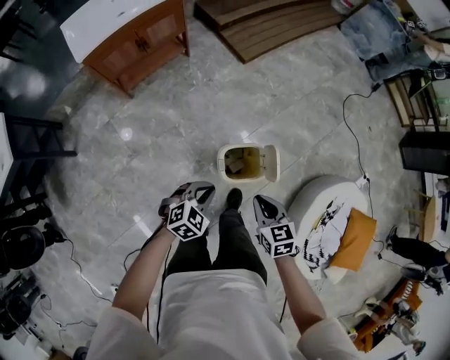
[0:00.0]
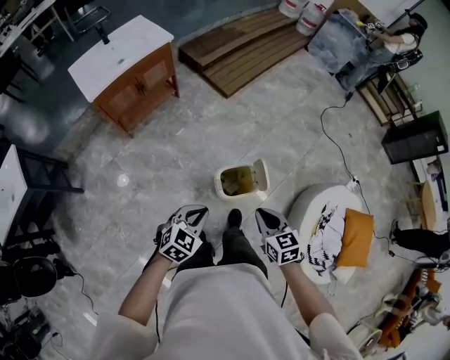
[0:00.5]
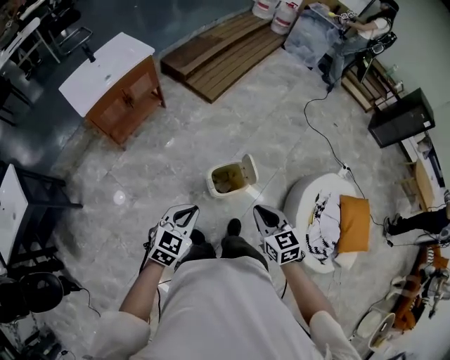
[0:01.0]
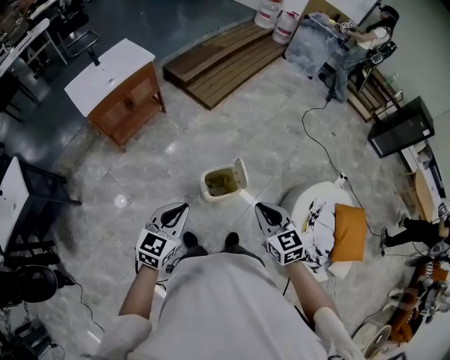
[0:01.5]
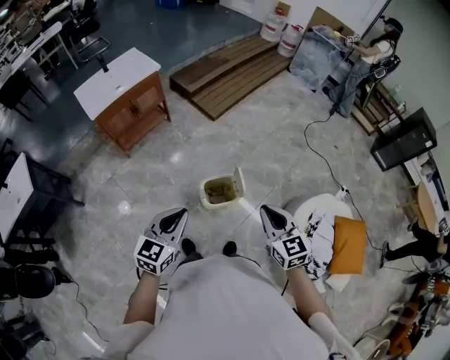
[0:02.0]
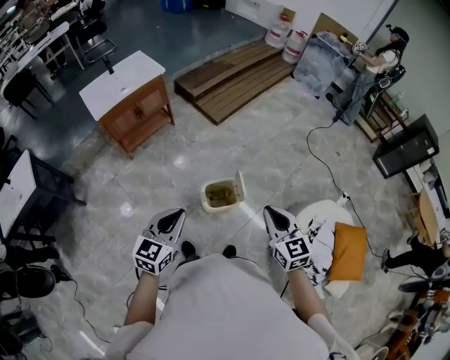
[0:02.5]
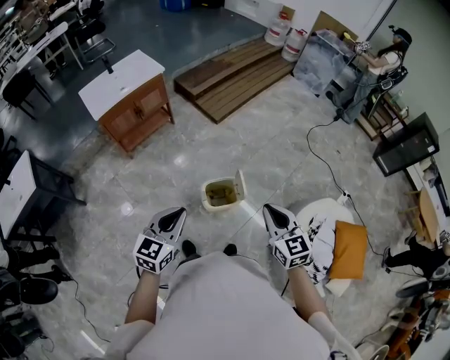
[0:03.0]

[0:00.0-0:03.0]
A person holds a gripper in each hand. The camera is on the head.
0:00.0 to 0:01.5: Both grippers travel together upward, approximately 25 cm. The left gripper changes its angle by some 30 degrees.
0:01.5 to 0:03.0: The right gripper moves some 5 cm.

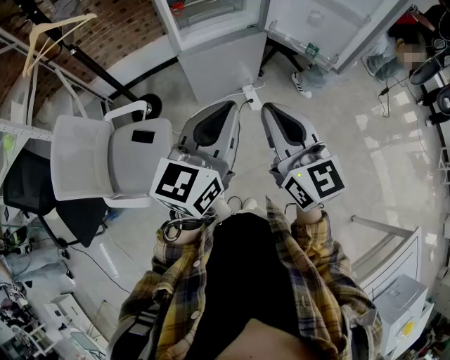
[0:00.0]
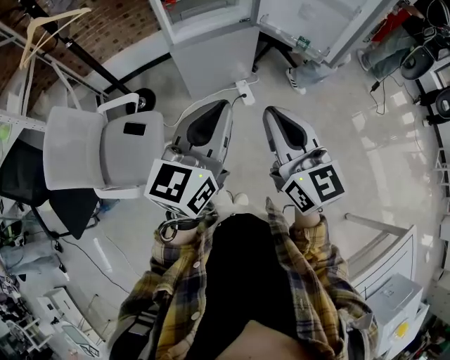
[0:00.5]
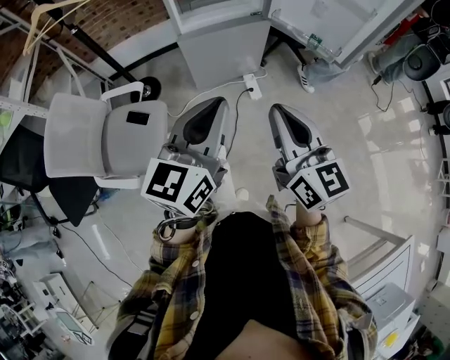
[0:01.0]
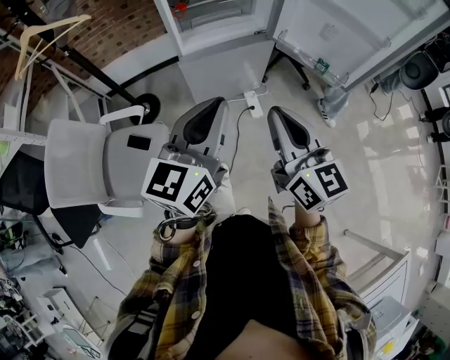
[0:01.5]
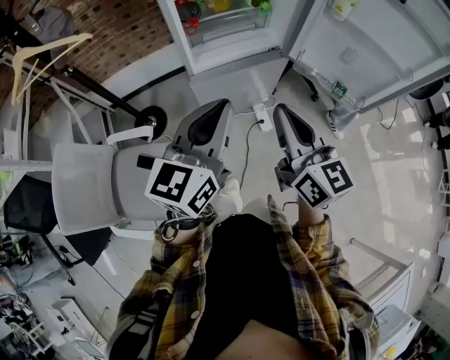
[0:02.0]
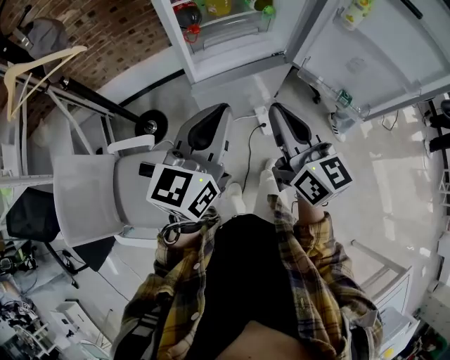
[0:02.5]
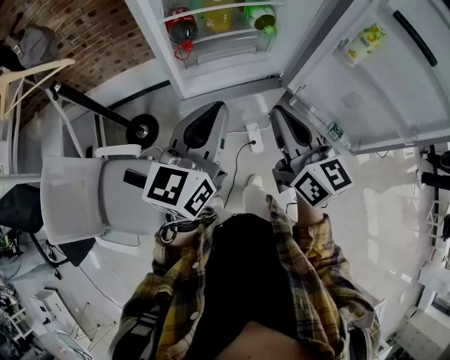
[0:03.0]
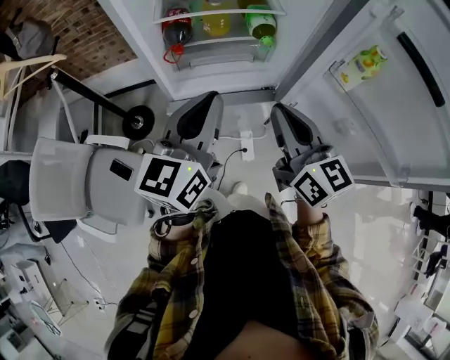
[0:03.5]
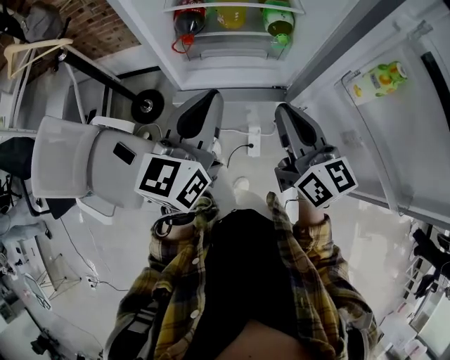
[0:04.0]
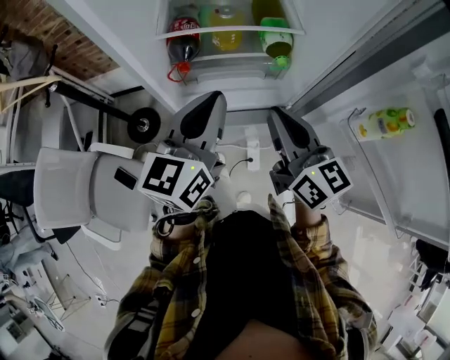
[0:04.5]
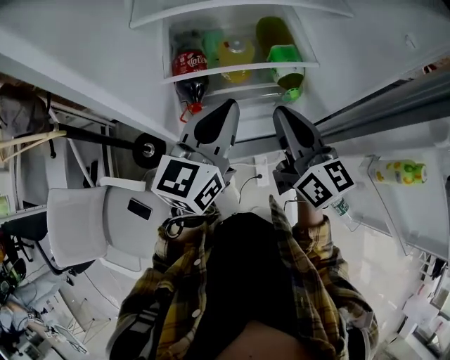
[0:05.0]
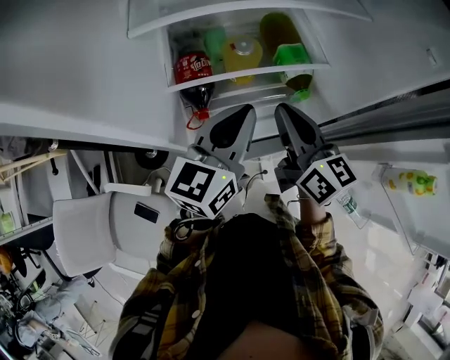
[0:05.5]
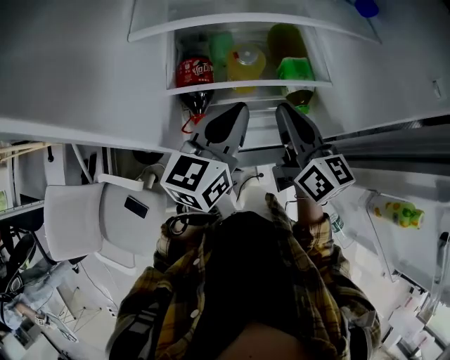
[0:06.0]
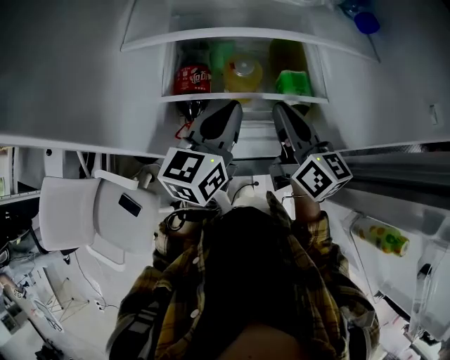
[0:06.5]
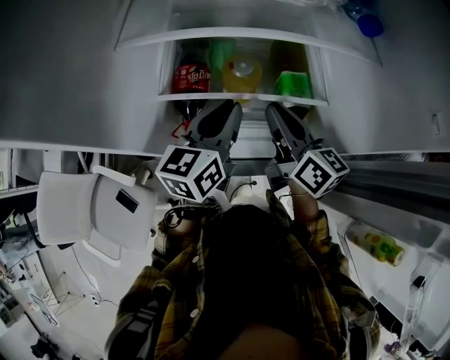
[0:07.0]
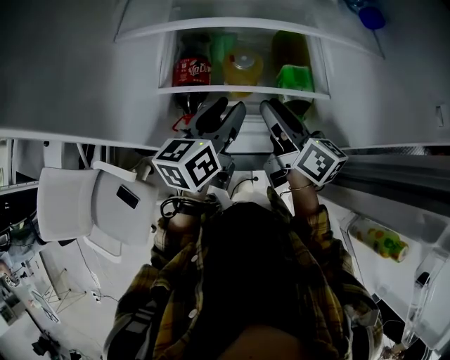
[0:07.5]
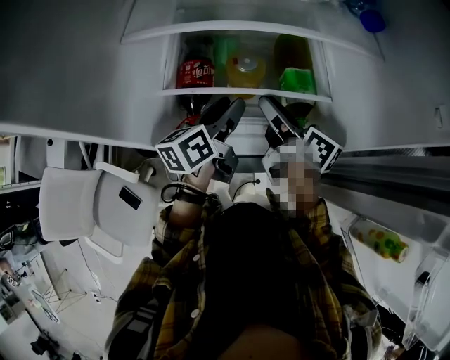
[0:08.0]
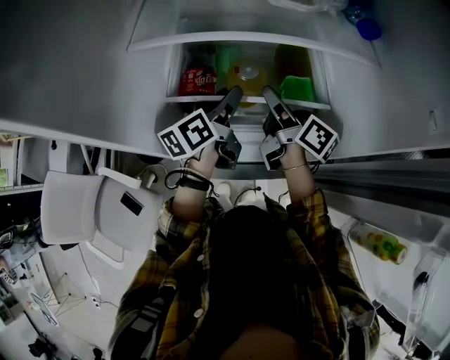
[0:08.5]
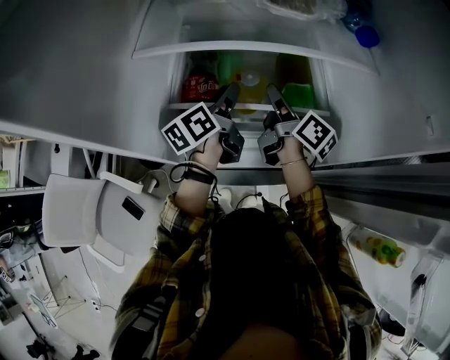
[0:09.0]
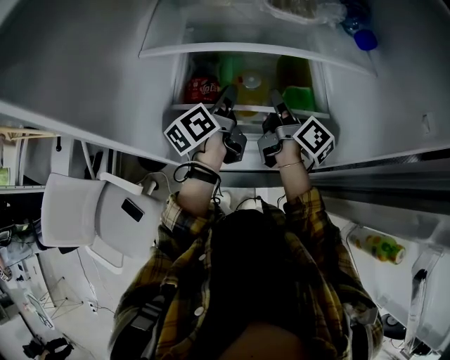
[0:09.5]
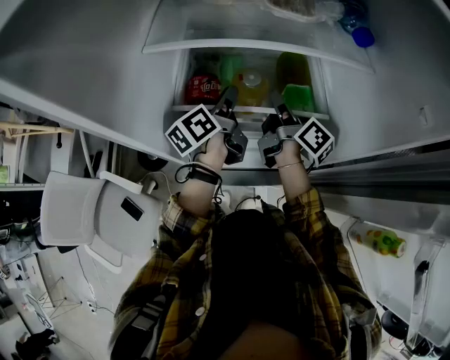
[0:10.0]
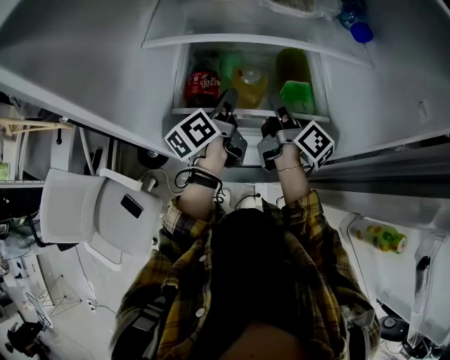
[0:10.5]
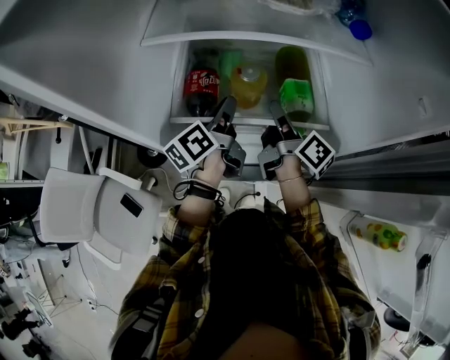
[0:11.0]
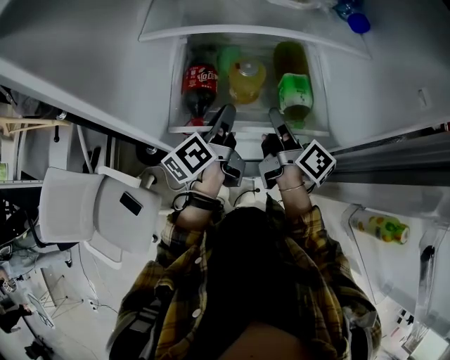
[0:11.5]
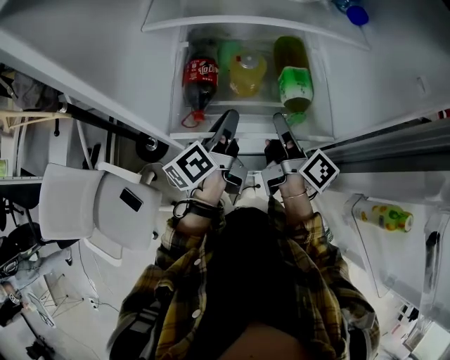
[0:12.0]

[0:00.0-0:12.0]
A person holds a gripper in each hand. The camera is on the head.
0:00.0 to 0:02.0: The two grippers go about 20 cm forward.
0:02.0 to 0:04.0: Both grippers move forward and to the right, approximately 25 cm. The right gripper swivels about 20 degrees, while the left gripper turns by some 20 degrees.
0:04.0 to 0:06.0: Both grippers travel together forward, approximately 25 cm.
0:06.0 to 0:08.0: The right gripper goes some 10 cm forward and downward, swivels some 30 degrees, and opens up. Meanwhile the left gripper is displaced downward and forward by some 10 cm, swivels roughly 30 degrees, and opens its fingers.
0:08.0 to 0:10.0: Both grippers move forward, roughly 5 cm. The right gripper closes. The left gripper closes up.
0:10.0 to 0:12.0: The grippers both shift backward by roughly 10 cm.

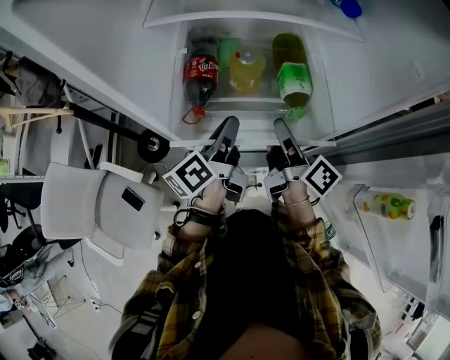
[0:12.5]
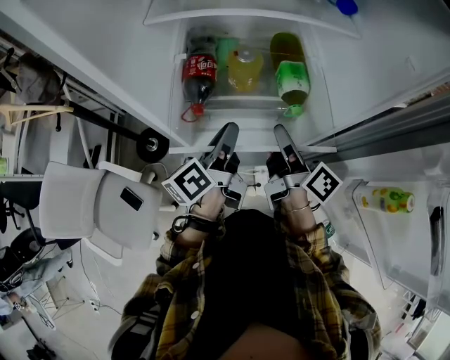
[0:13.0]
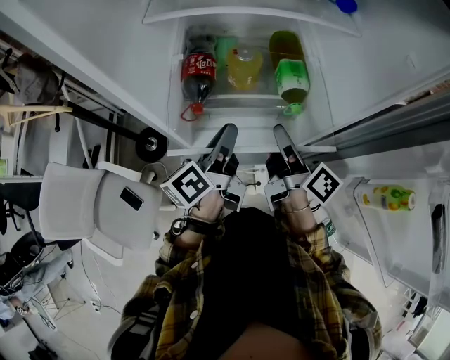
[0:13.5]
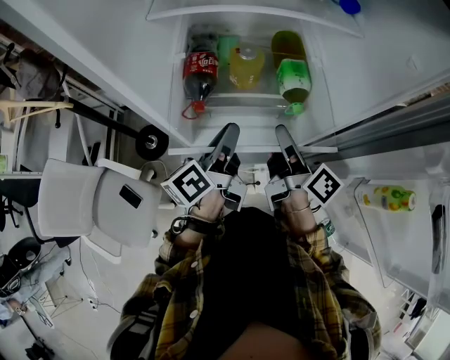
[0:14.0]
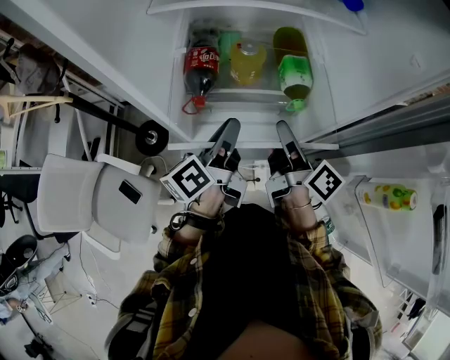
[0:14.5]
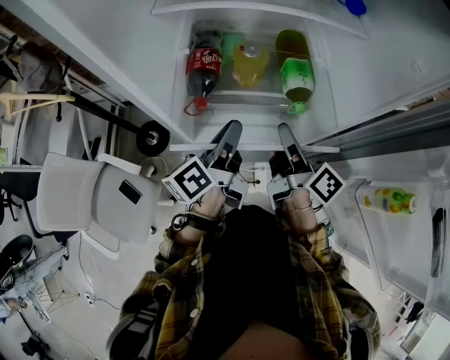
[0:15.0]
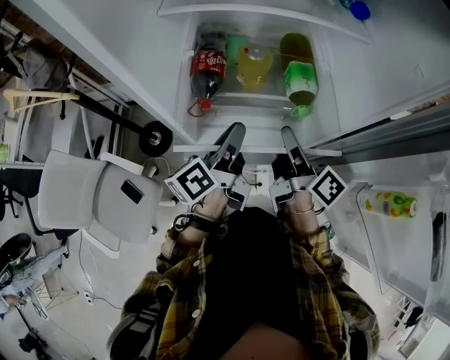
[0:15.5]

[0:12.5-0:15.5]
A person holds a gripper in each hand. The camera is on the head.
0:12.5 to 0:14.0: The grippers make only small movements.
0:14.0 to 0:15.5: Both grippers stay put.

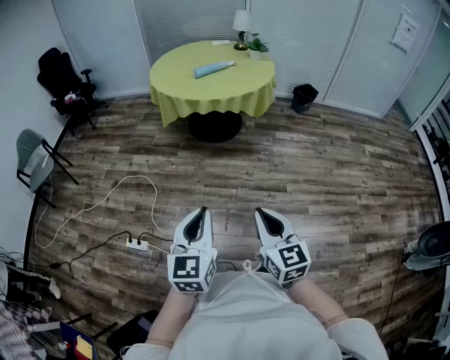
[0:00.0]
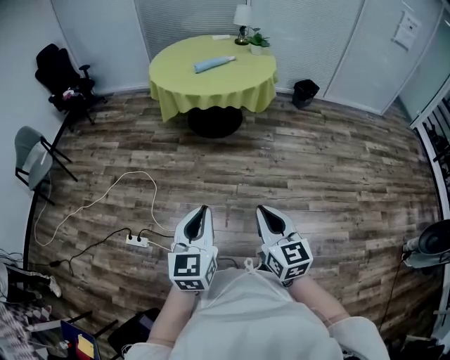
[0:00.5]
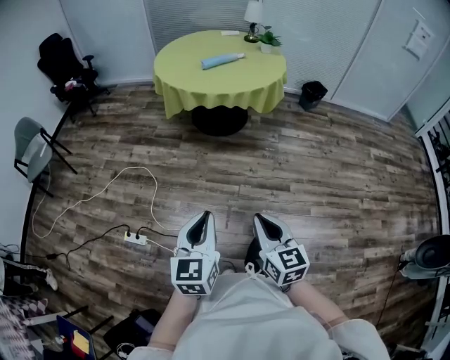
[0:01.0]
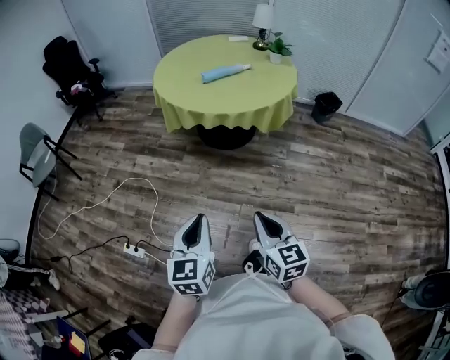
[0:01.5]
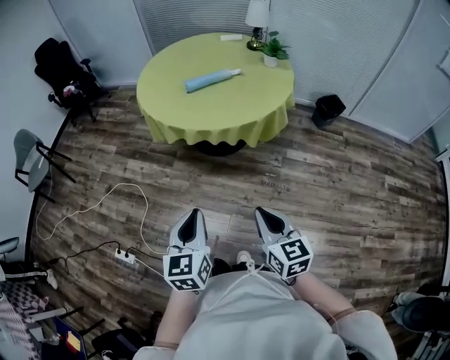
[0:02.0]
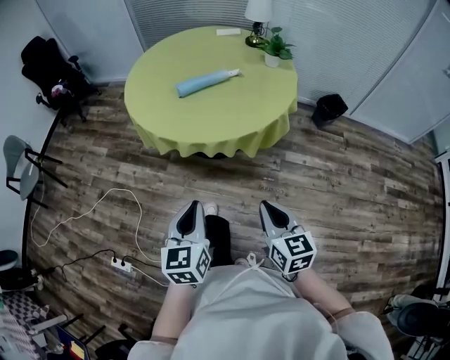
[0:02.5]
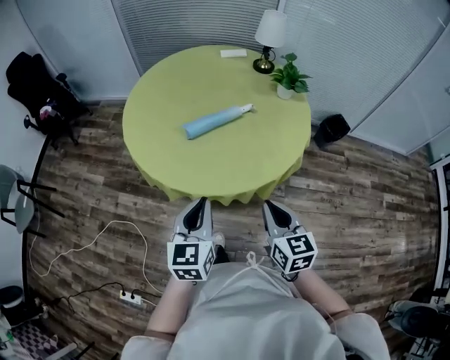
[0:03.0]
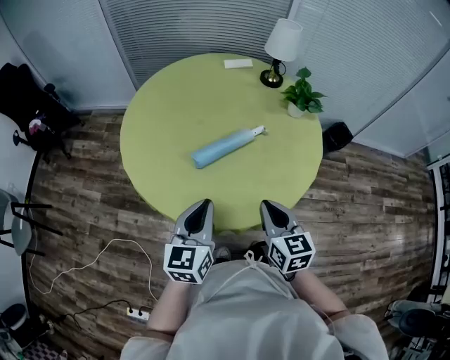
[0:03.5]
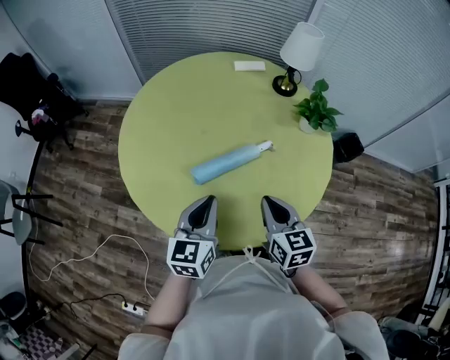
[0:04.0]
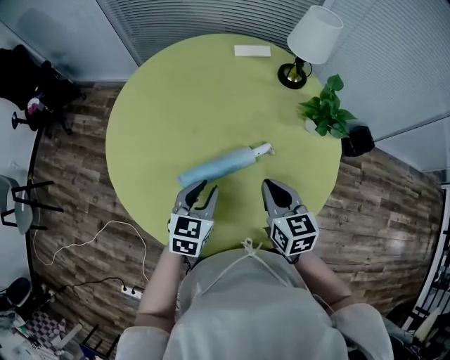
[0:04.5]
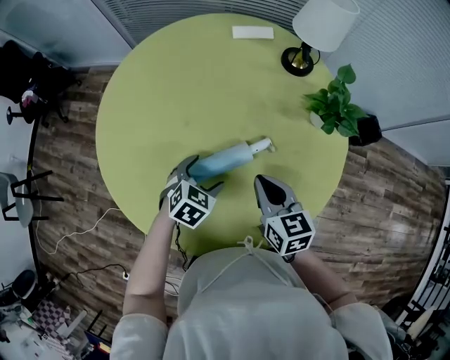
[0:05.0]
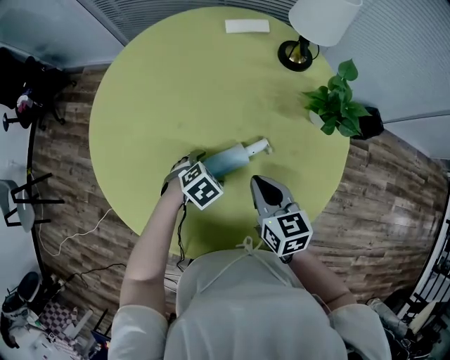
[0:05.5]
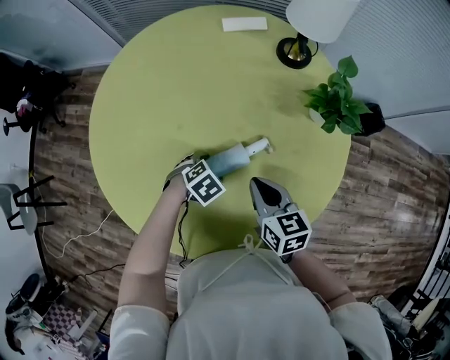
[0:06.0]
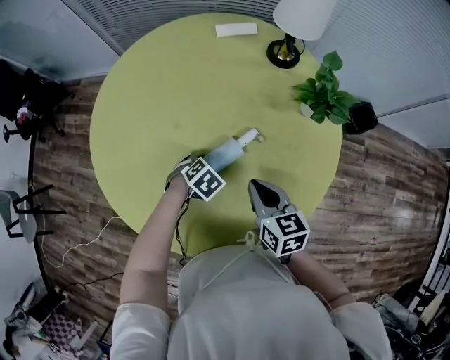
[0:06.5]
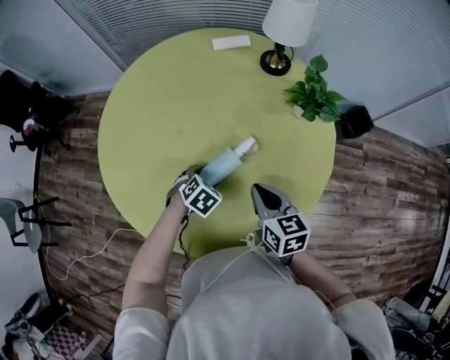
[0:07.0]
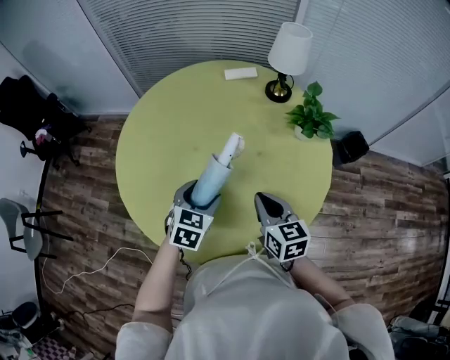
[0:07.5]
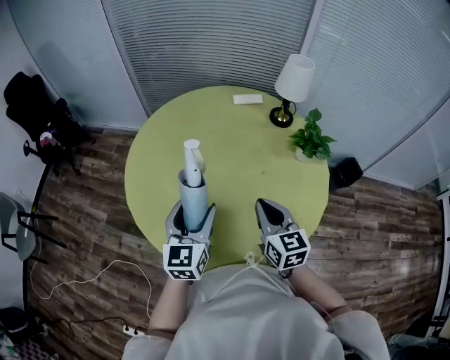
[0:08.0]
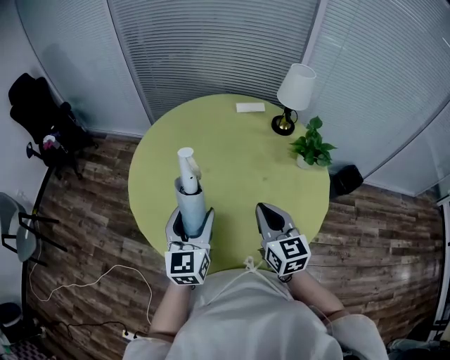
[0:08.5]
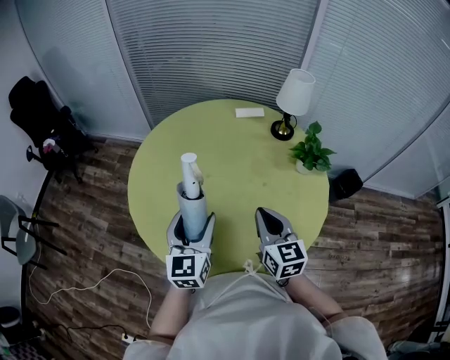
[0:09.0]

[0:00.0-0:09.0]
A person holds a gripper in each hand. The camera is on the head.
0:00.0 to 0:02.0: Both grippers are carried forward and to the right, some 40 cm.
0:02.0 to 0:04.5: The two grippers travel together, forward, some 80 cm. The left gripper swivels some 30 degrees.
0:04.5 to 0:07.0: The left gripper heads downward, covering approximately 15 cm, points its fingers approximately 40 degrees further downward, and opens its fingers.
0:07.0 to 0:09.0: The left gripper heads upward and to the left, covering roughly 30 cm, and points its fingers some 60 degrees further upward. Meanwhile the right gripper travels upward and to the left by about 15 cm, and rotates about 20 degrees.
